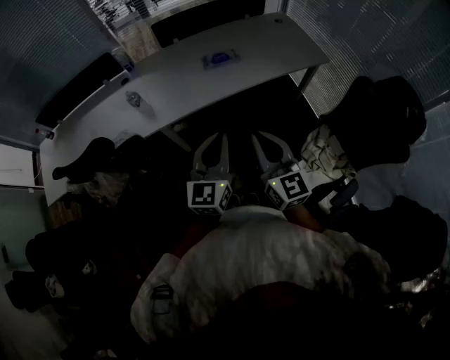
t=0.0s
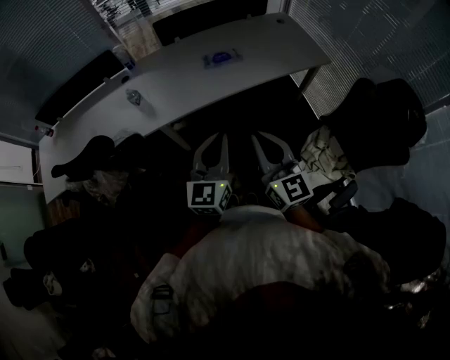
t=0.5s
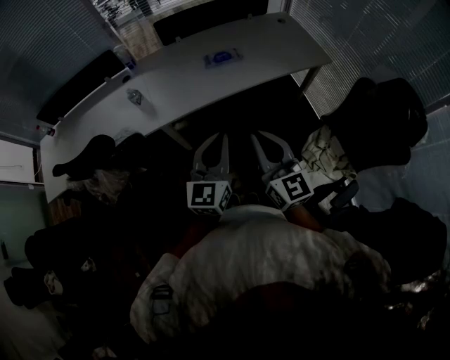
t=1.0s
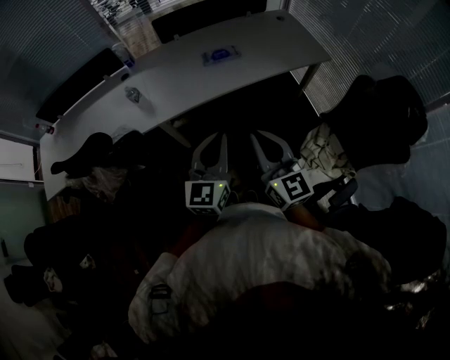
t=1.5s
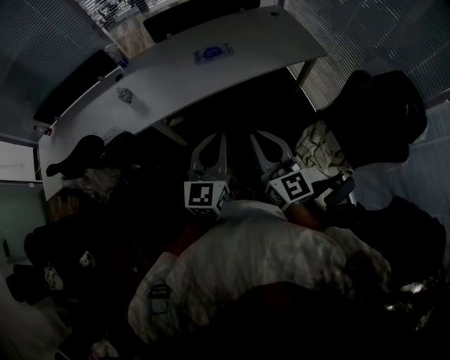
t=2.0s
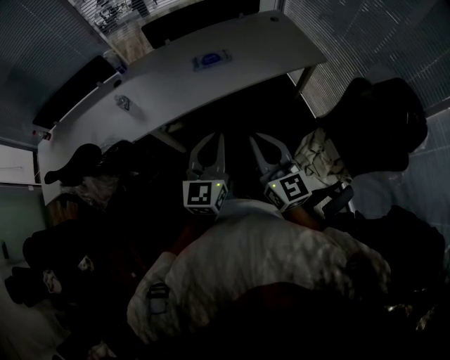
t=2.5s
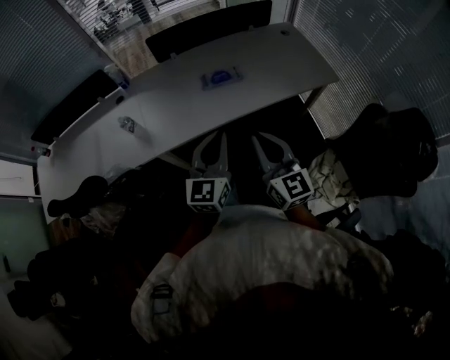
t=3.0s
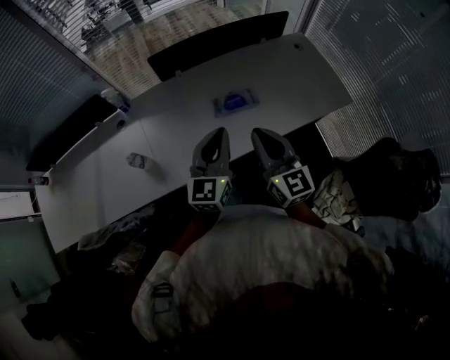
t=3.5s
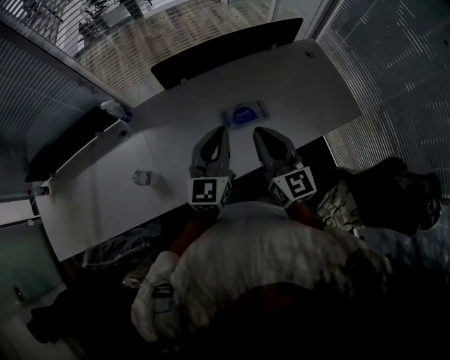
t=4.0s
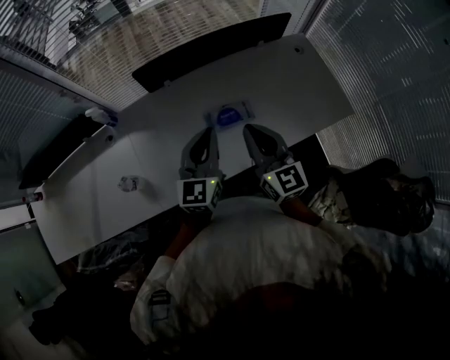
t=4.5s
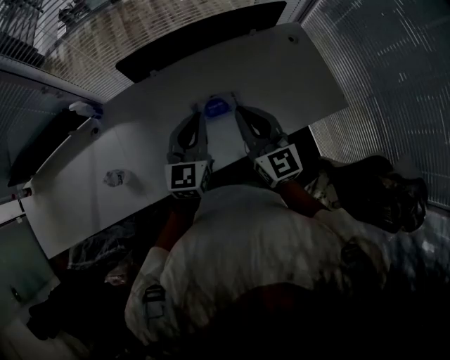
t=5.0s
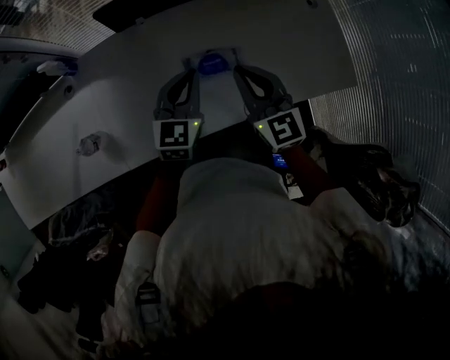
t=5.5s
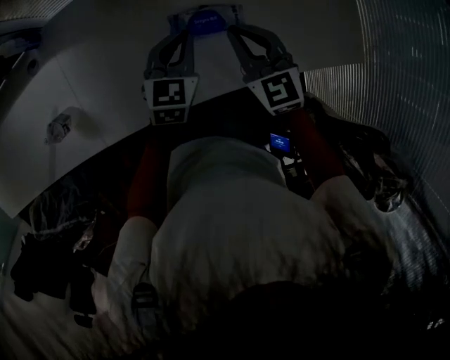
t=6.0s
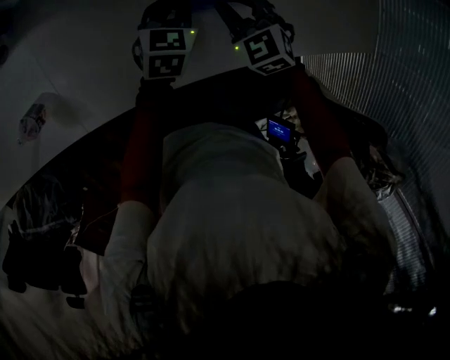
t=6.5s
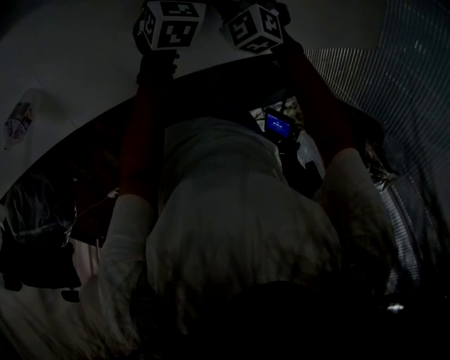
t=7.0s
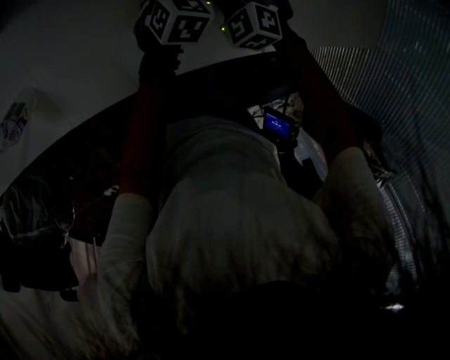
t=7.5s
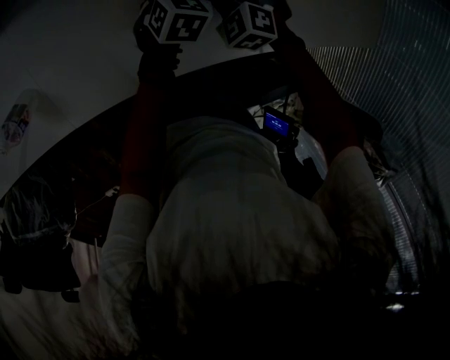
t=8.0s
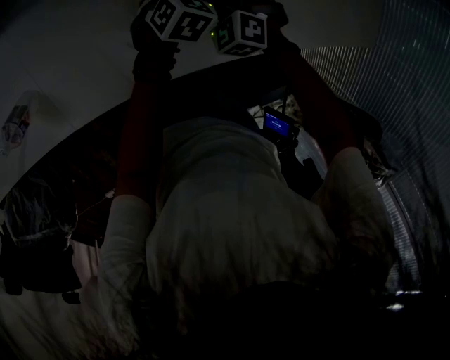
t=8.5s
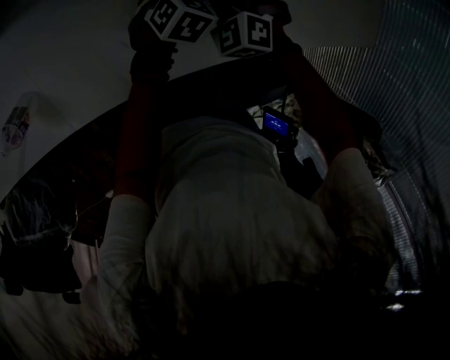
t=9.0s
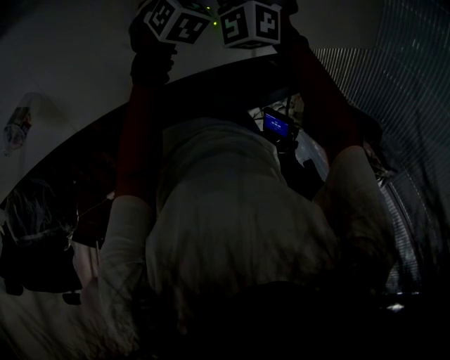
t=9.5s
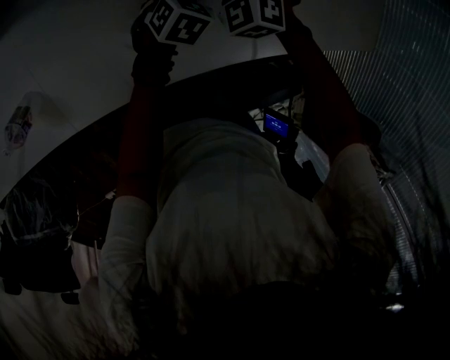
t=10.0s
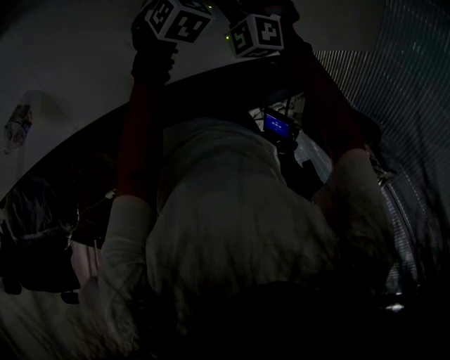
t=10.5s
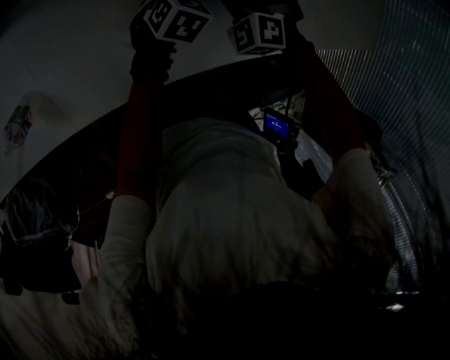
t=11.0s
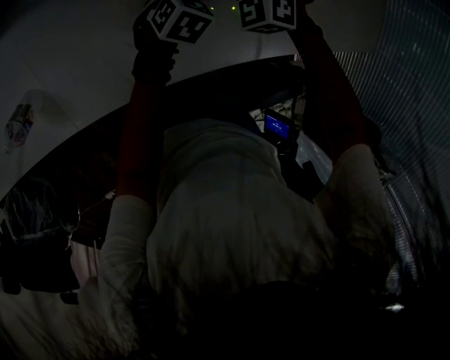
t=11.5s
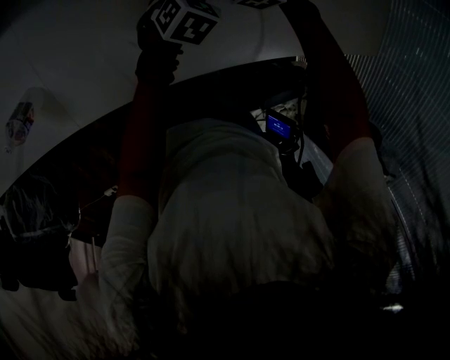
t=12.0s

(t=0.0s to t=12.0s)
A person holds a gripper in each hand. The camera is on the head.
t=0.0s - t=2.0s: The left gripper moves to the right, roughly 5 cm.
t=2.0s - t=4.0s: Both grippers are carried forward, roughly 50 cm.
t=4.0s - t=6.0s: The grippers both shift downward and forward by some 25 cm. The left gripper rotates some 30 degrees. The right gripper turns by roughly 40 degrees.
t=6.0s - t=8.0s: Both grippers travel together downward, approximately 20 cm. The right gripper tilts its fingers approximately 30 degrees downward. The left gripper rotates roughly 30 degrees.
t=8.0s - t=10.0s: The right gripper is displaced forward and upward by roughly 10 cm.

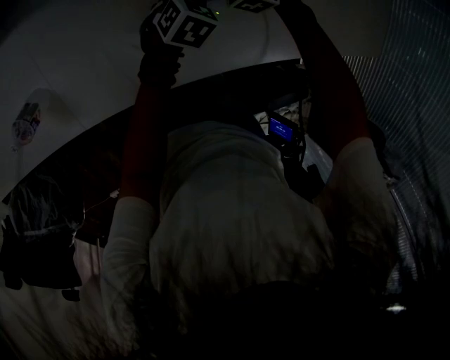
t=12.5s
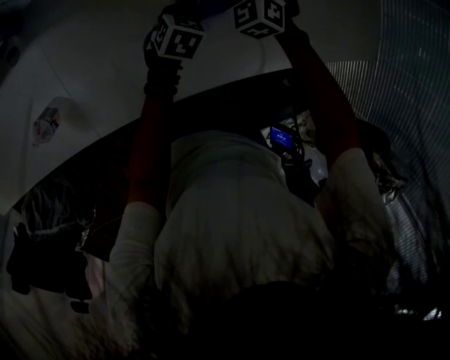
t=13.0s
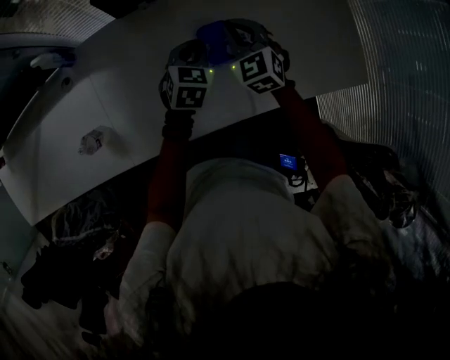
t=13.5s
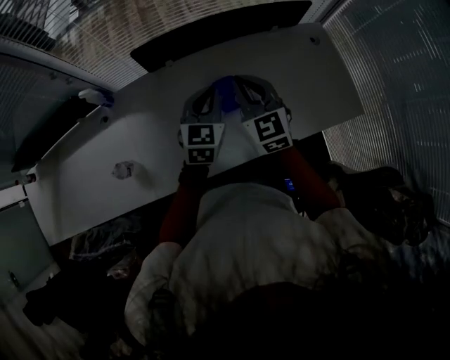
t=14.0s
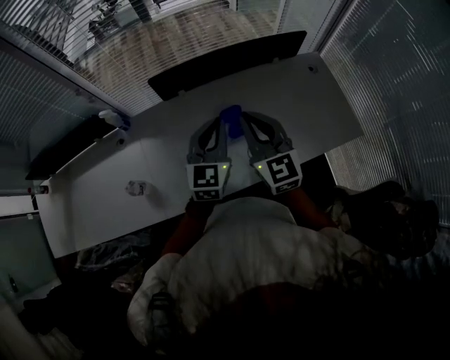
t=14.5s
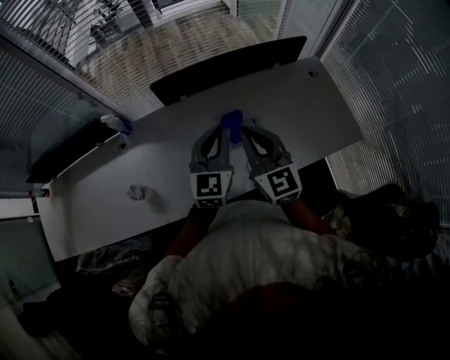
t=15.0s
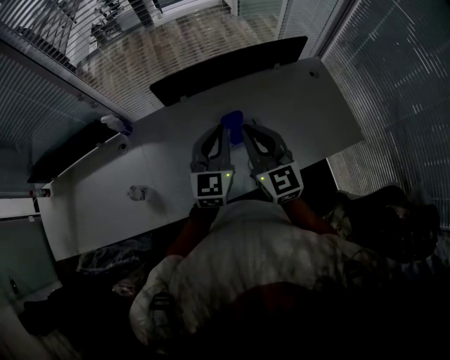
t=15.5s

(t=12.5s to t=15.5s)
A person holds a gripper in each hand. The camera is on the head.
t=12.5s - t=14.0s: Both grippers travel together upward, approximately 35 cm. The right gripper tilts its fingers about 30 degrees upward, while the left gripper tips its fingers upward by approximately 30 degrees.
t=14.0s - t=15.5s: The right gripper goes about 10 cm backward and upward, while the left gripper moves upward and backward, some 10 cm.

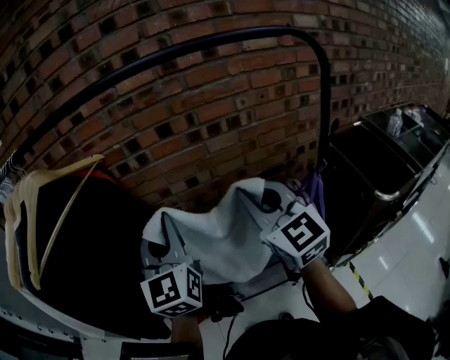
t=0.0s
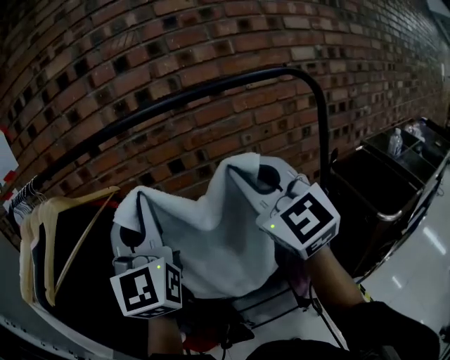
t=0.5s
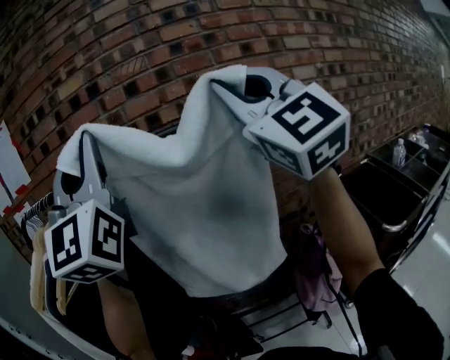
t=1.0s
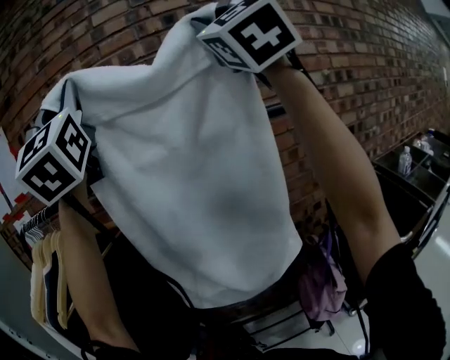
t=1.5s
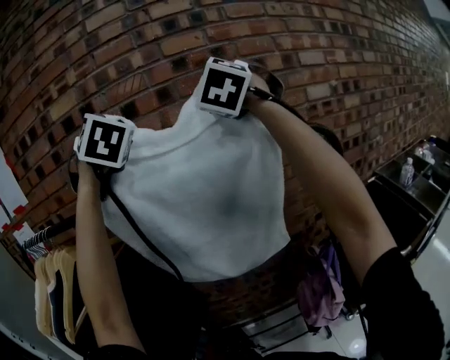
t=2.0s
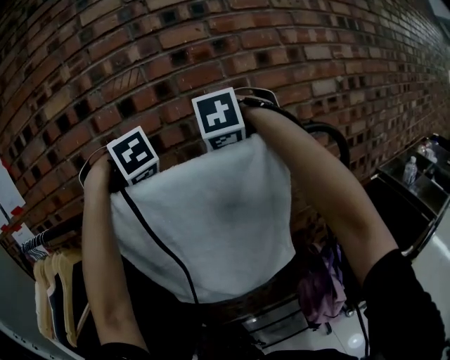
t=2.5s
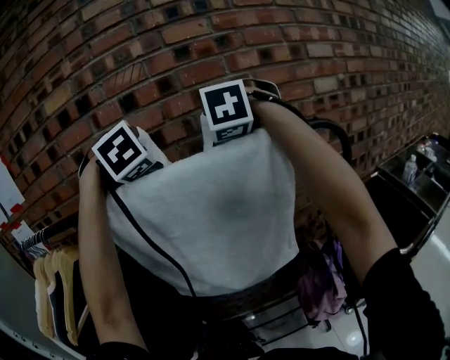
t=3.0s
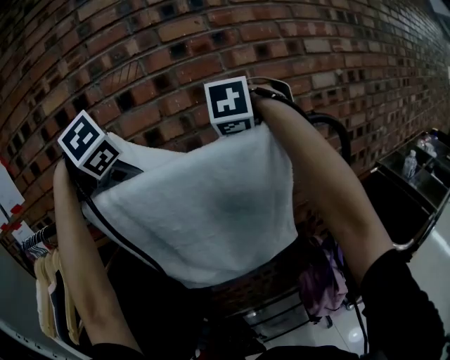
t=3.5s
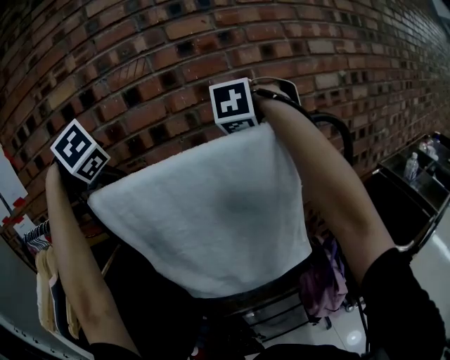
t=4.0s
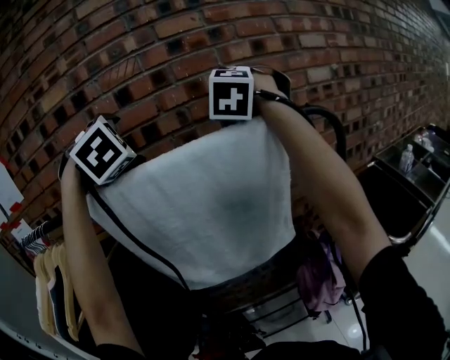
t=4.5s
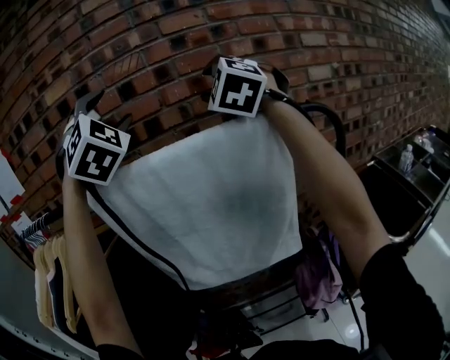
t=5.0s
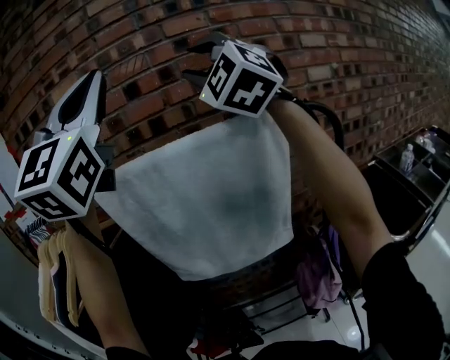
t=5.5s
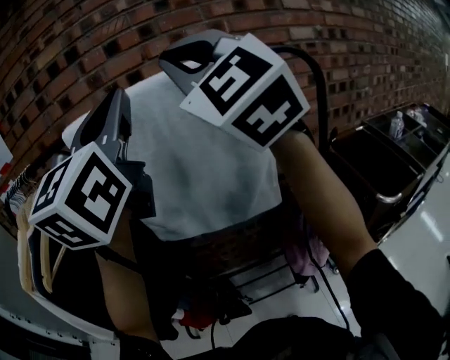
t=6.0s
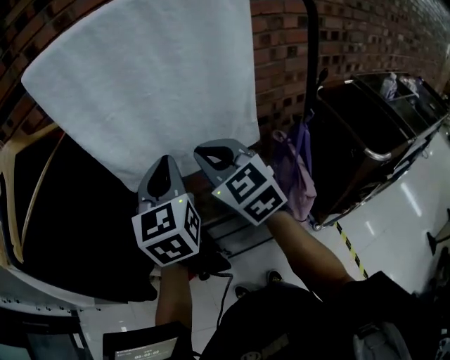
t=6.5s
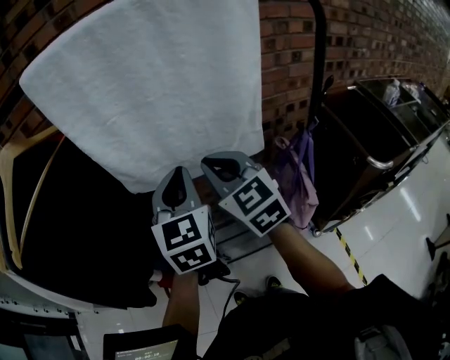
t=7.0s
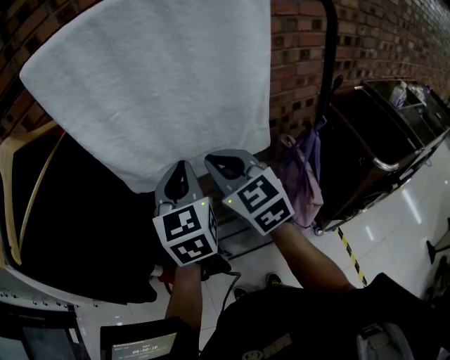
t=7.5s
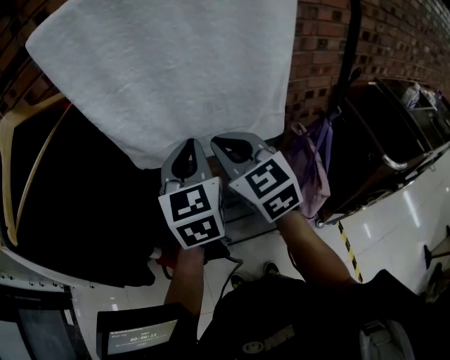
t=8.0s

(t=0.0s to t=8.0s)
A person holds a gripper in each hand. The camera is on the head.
t=0.0s - t=2.0s: Both grippers move upward and forward, approximately 40 cm. The right gripper rotates around the line of its fingers by about 40 degrees, counterclockwise from behind. The left gripper rotates around the line of its fingers by roughly 40 degrees, clockwise from behind.
t=2.0s - t=4.0s: The left gripper moves downward and to the left, approximately 15 cm, tilts its fingers roughly 40 degrees downward, and opens, while the right gripper goes about 15 cm downward, angles its fingers downward, by some 40 degrees, and opens its fingers.
t=4.0s - t=6.0s: The left gripper goes approximately 25 cm backward and to the right, tips its fingers upward by approximately 60 degrees, and closes up; the right gripper shifts roughly 25 cm backward, upward and to the left, tips its fingers upward by about 60 degrees, and closes its fingers.
t=6.0s - t=8.0s: The grippers both shift downward by roughly 35 cm. The right gripper changes its angle by approximately 40 degrees. Meanwhile the left gripper rotates some 30 degrees.

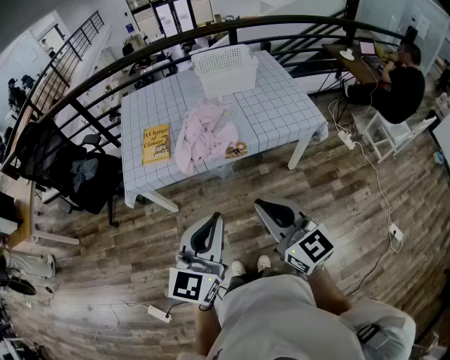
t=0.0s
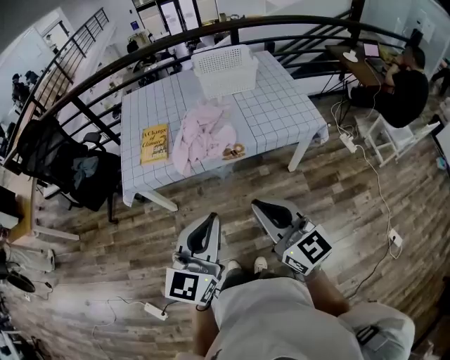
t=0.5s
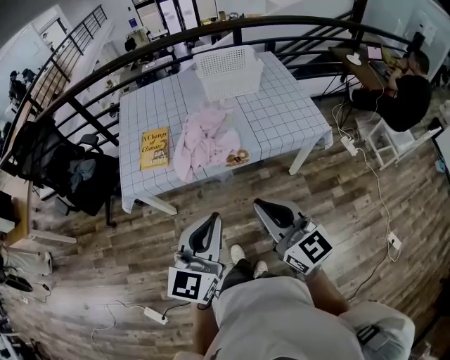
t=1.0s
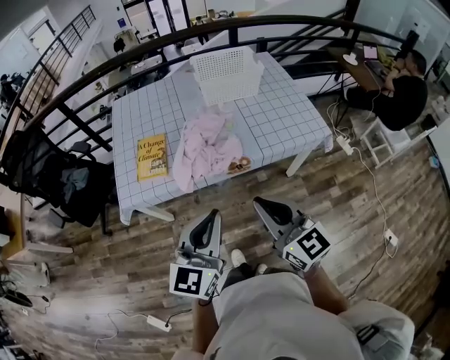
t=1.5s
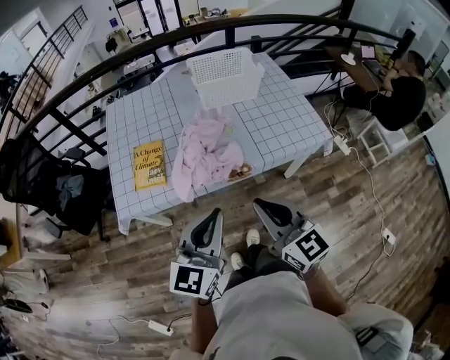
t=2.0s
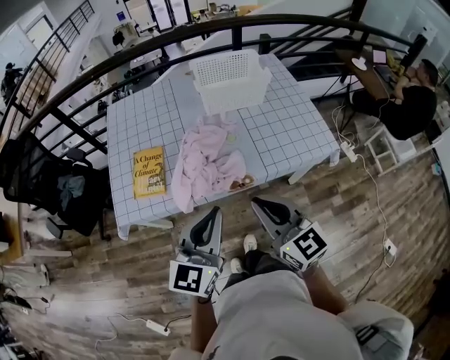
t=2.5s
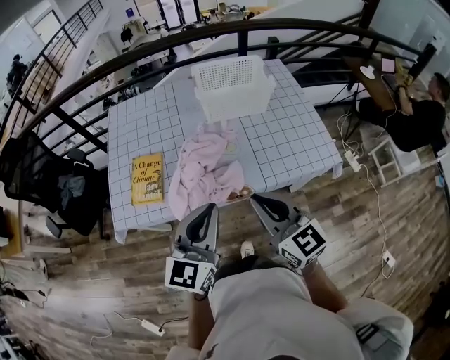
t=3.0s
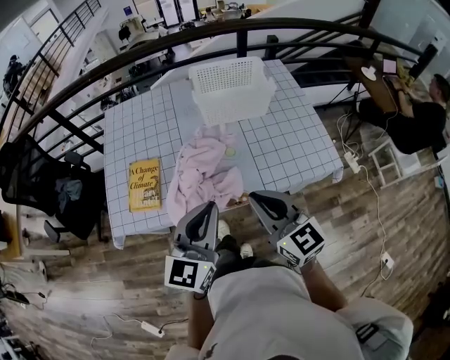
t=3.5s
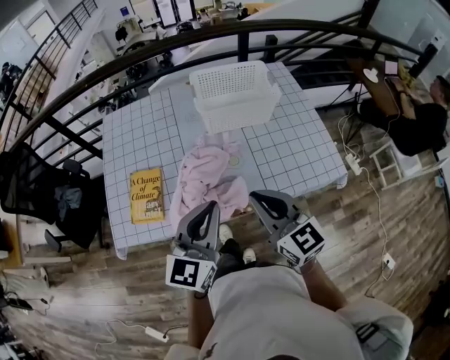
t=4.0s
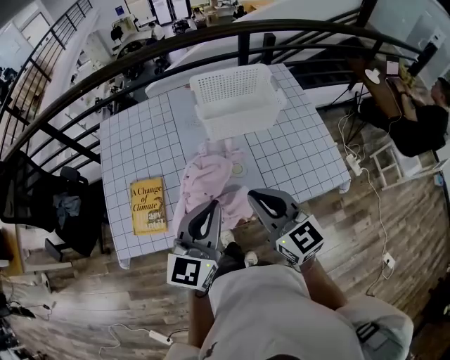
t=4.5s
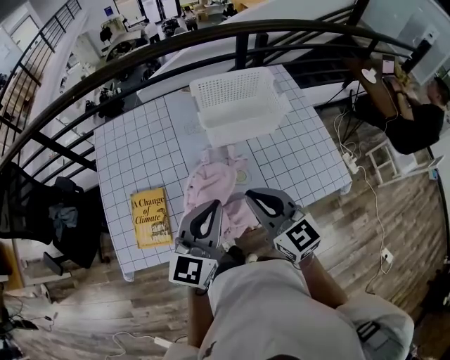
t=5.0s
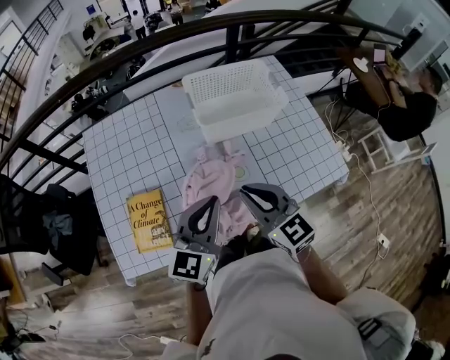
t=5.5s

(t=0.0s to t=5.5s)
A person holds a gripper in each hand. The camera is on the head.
t=0.0s - t=2.0s: The two grippers go roughly 15 cm forward.
t=2.0s - t=3.5s: The grippers both shift forward by some 15 cm.
t=3.5s - t=5.5s: The left gripper goes roughly 20 cm forward, while the right gripper heads forward and to the left, covering about 20 cm.
